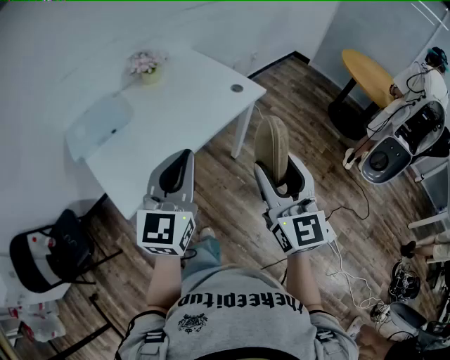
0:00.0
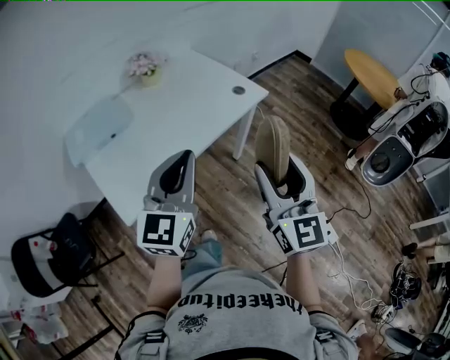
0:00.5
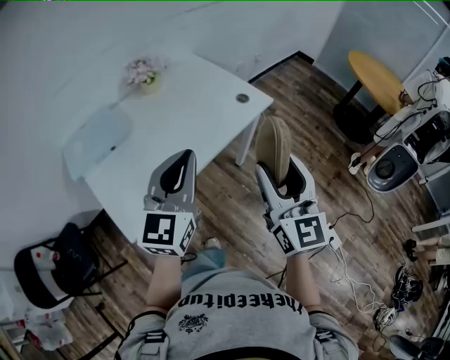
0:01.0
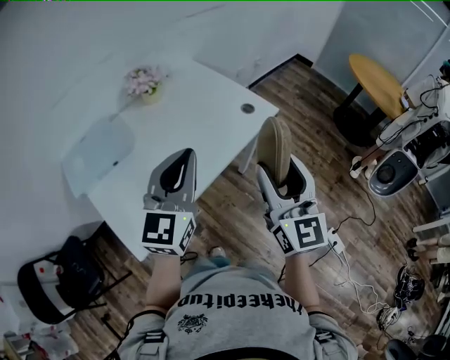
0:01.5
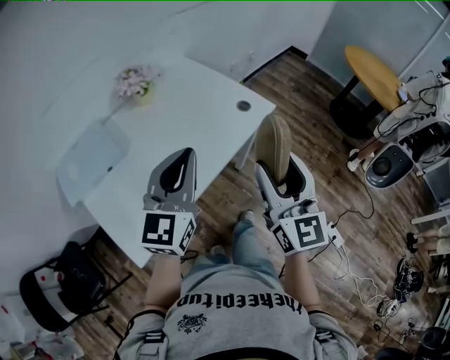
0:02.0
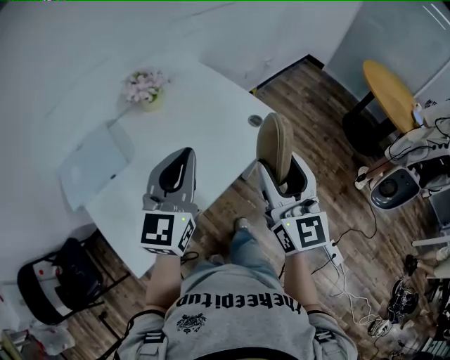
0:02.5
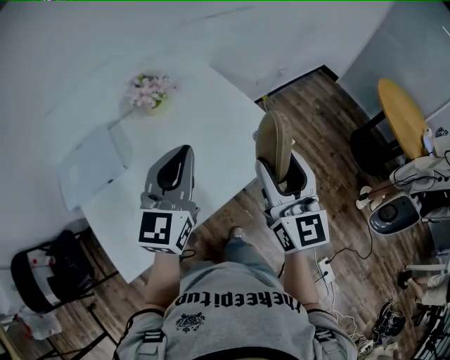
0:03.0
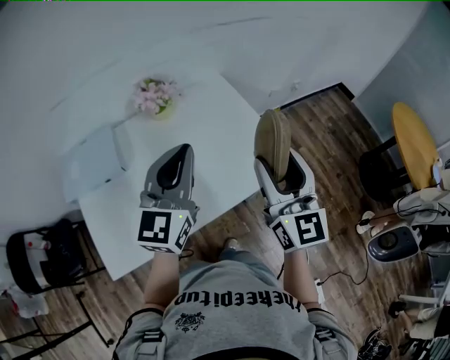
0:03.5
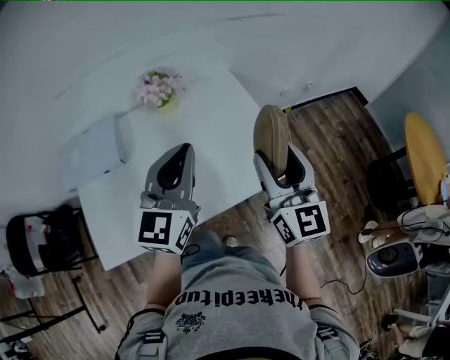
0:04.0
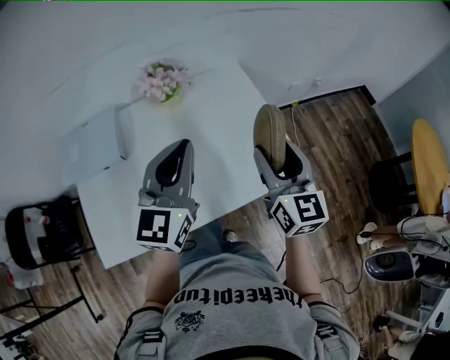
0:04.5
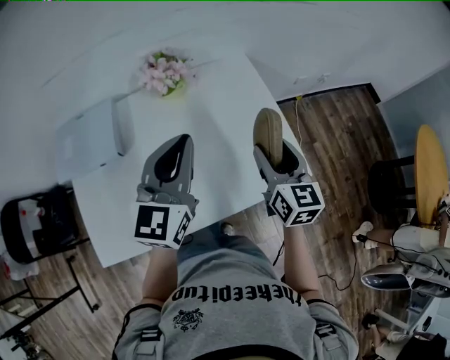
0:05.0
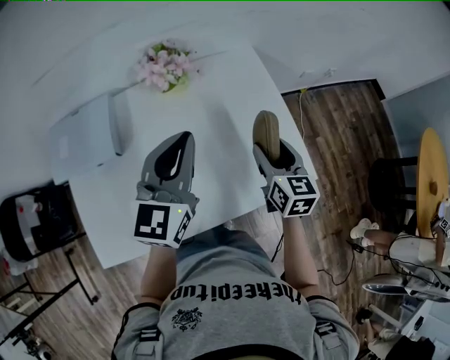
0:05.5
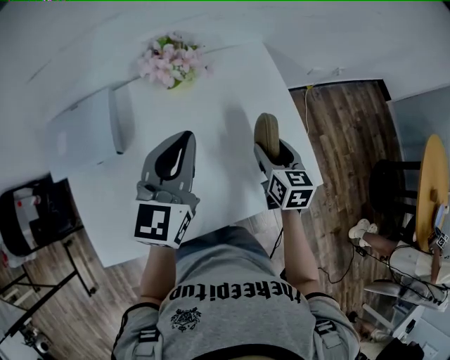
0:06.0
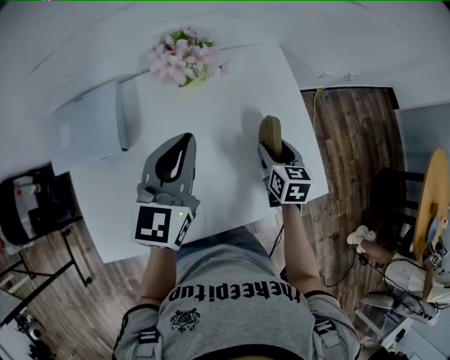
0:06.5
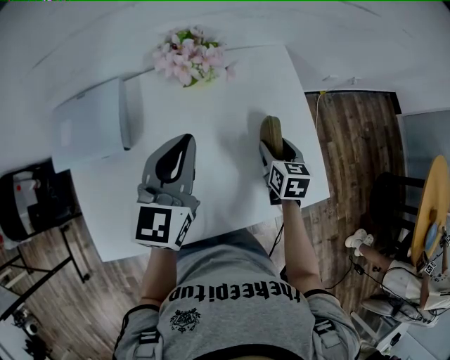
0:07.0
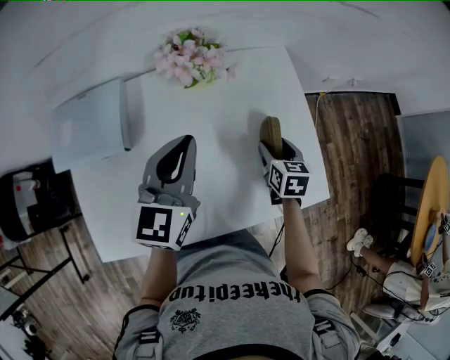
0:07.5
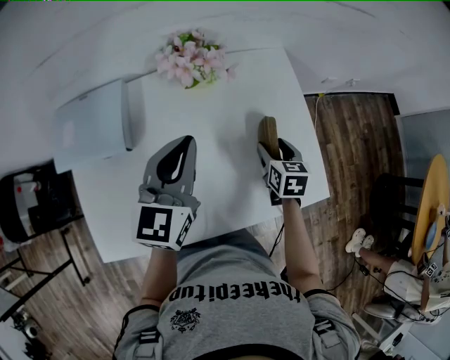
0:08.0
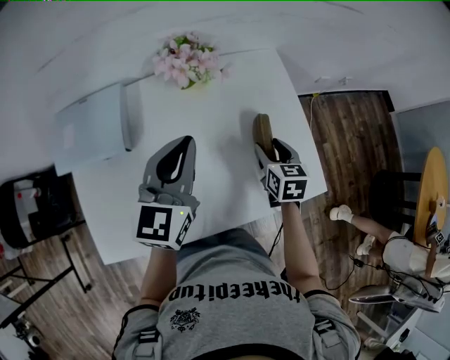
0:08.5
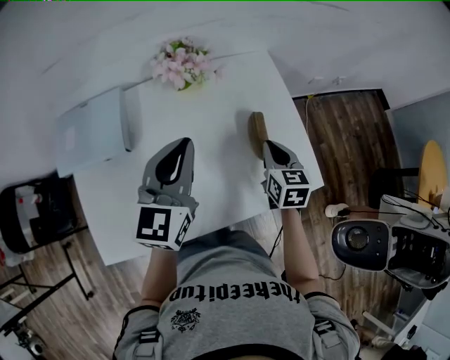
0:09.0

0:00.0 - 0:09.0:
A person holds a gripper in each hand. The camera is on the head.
0:00.0 - 0:02.0: Both grippers travel together forward, about 15 cm.
0:02.0 - 0:04.5: The right gripper shifts by approximately 30 cm, and swivels about 30 degrees; the left gripper changes place by approximately 20 cm, and rotates about 30 degrees.
0:04.5 - 0:07.0: The left gripper travels forward, downward and to the left by approximately 15 cm; the right gripper heads downward and forward, covering roughly 30 cm, and points its fingers roughly 40 degrees further downward.
0:07.0 - 0:09.0: The right gripper travels upward by about 5 cm, and closes up.

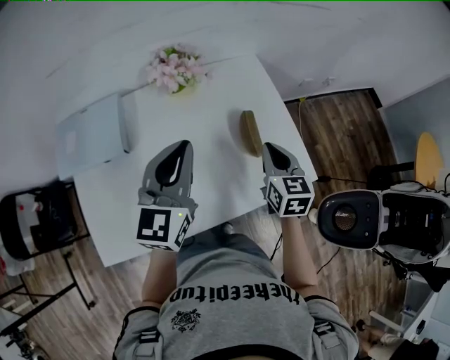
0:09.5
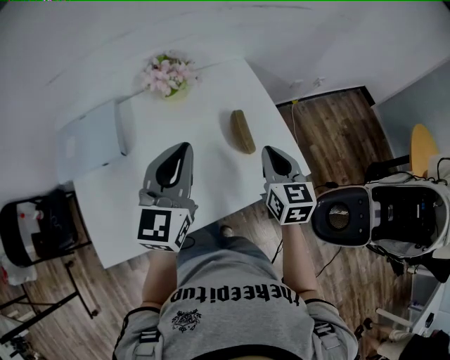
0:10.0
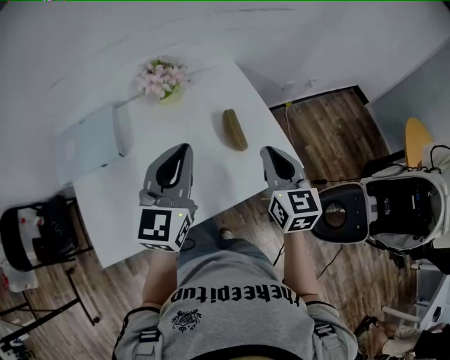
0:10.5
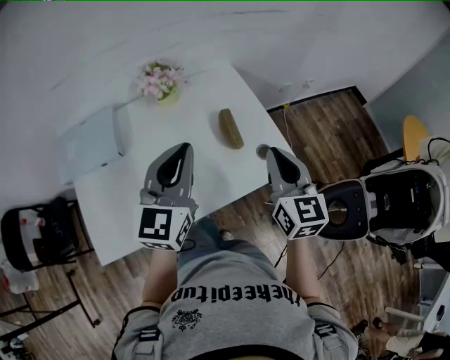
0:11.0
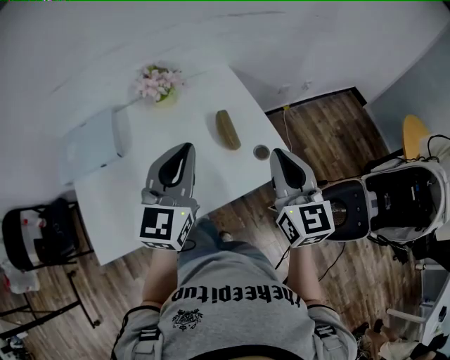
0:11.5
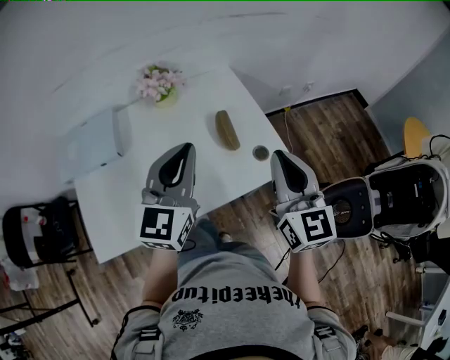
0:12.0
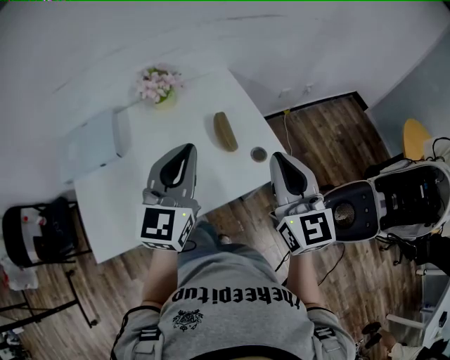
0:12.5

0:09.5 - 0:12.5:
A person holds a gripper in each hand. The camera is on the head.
0:09.5 - 0:11.0: The right gripper travels upward and backward by about 15 cm, while the left gripper moves backward and to the right, some 10 cm.
0:11.0 - 0:12.5: The right gripper moves about 5 cm.

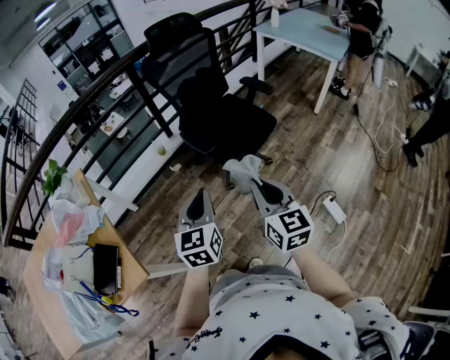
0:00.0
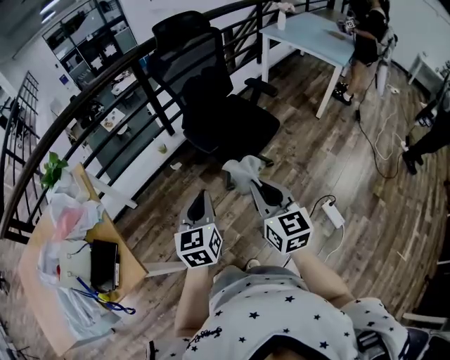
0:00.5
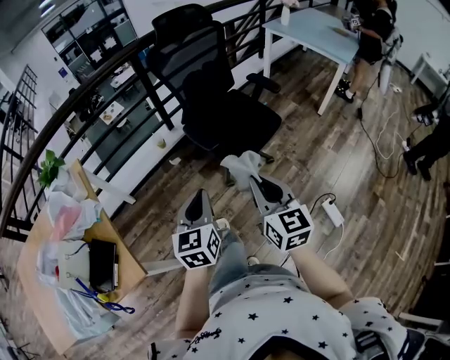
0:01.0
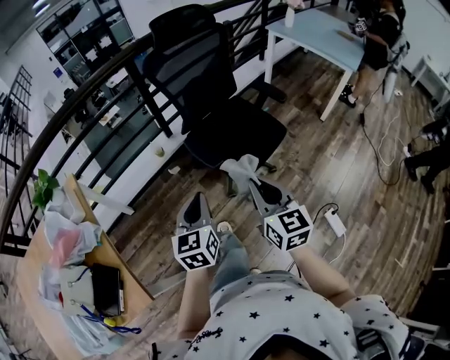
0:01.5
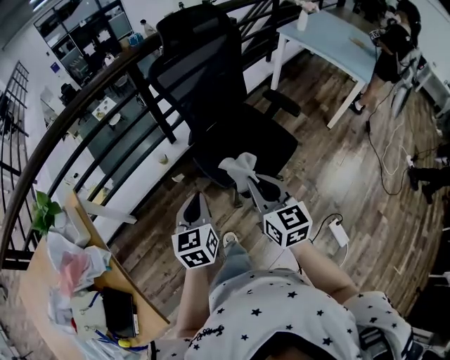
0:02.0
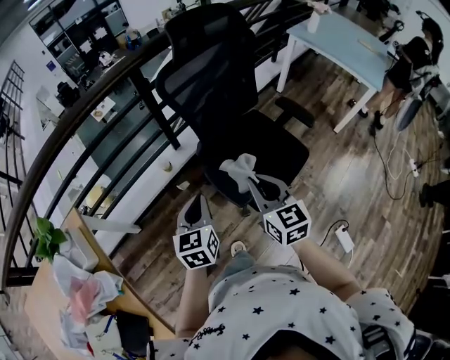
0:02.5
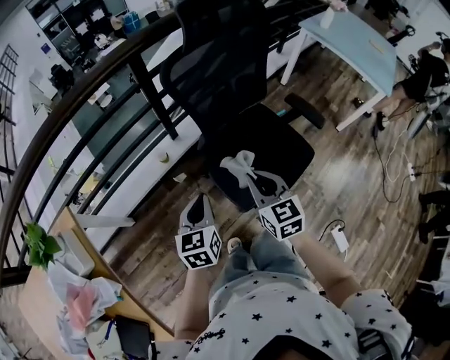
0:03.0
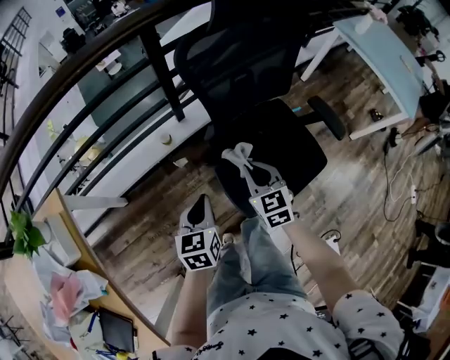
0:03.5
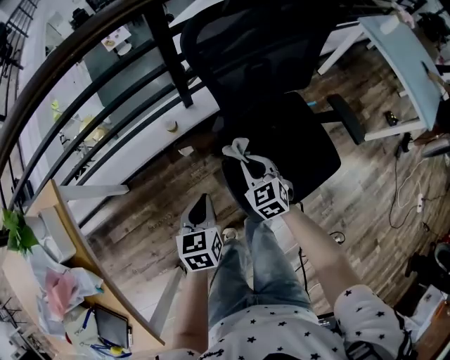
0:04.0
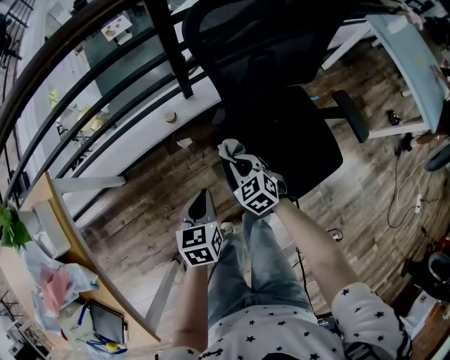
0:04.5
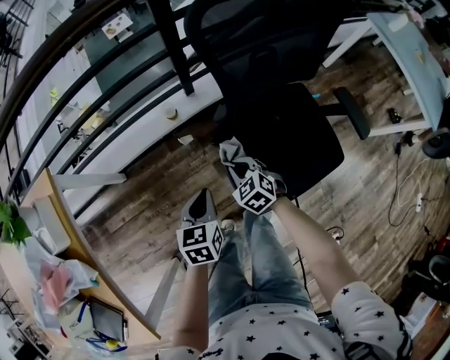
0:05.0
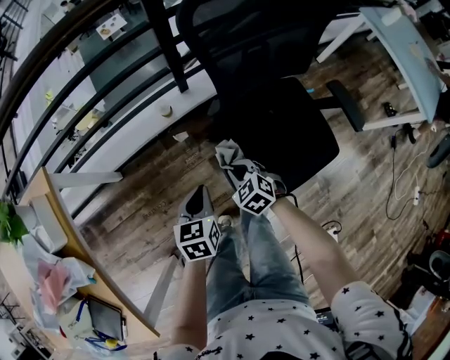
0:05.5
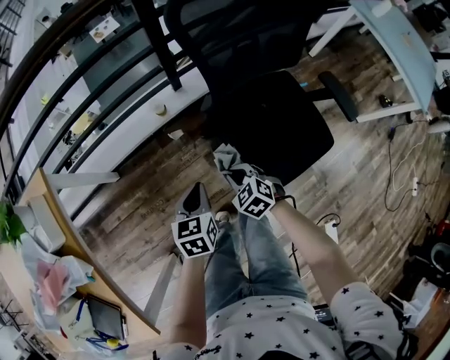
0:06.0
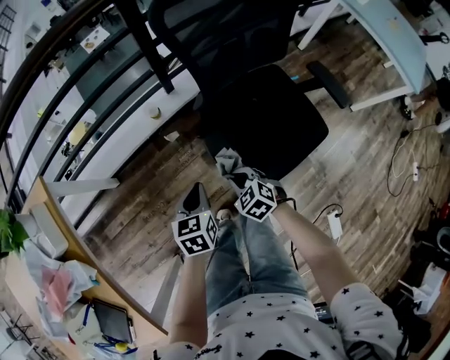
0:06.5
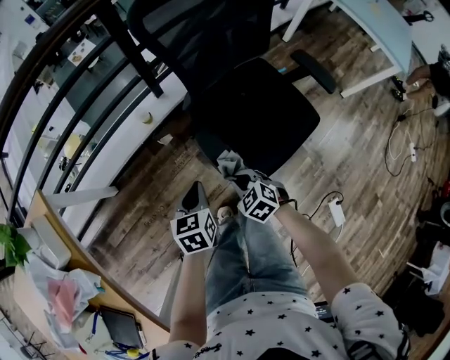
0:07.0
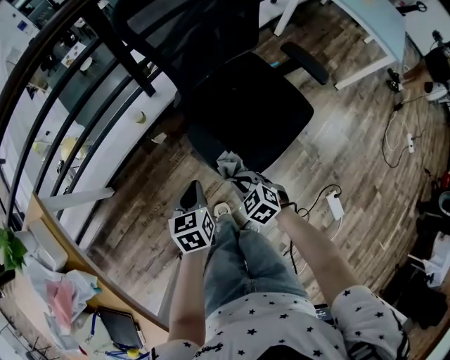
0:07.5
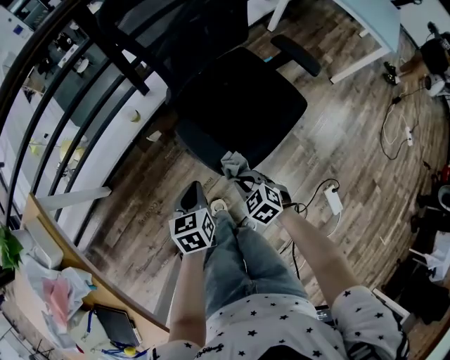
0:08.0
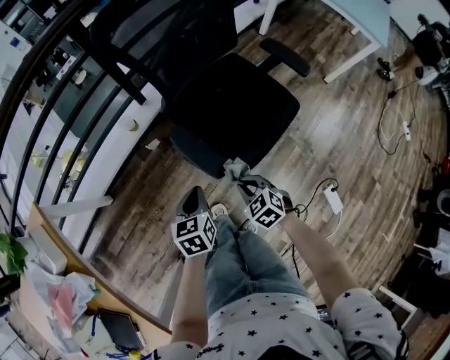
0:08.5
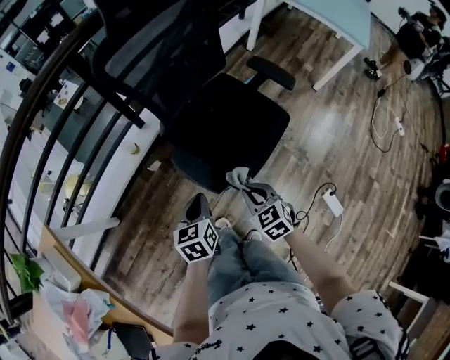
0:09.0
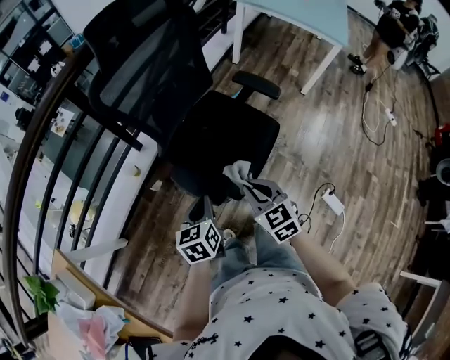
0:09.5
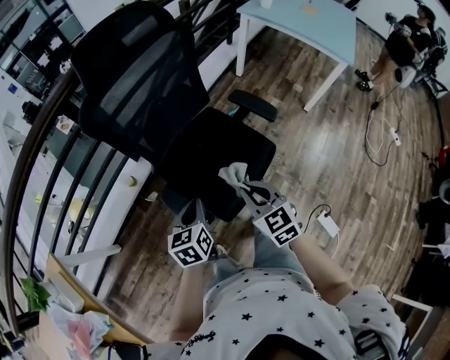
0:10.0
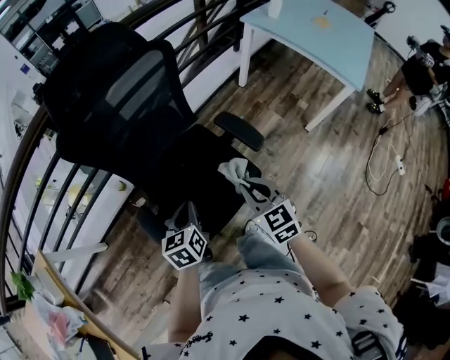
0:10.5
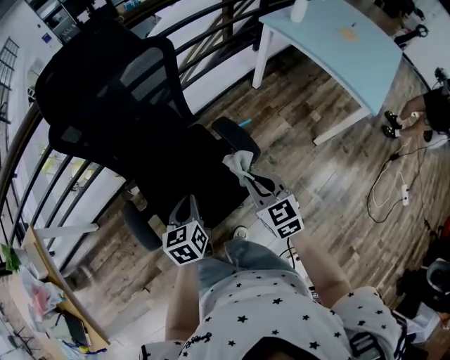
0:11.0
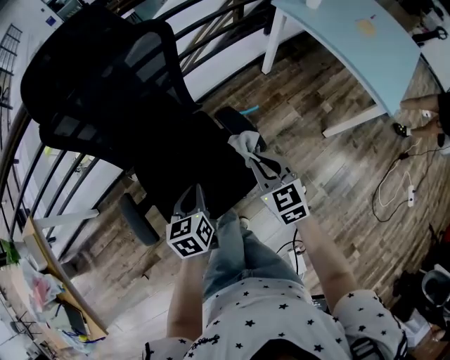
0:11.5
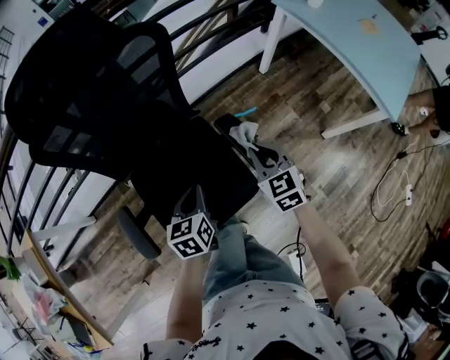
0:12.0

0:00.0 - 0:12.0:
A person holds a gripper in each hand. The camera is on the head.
0:00.0 - 0:02.0: The two grippers go some 25 cm forward.
0:02.0 - 0:04.0: The right gripper moves forward and downward, about 40 cm, and rotates some 40 degrees. Meanwhile the left gripper shifts some 25 cm downward and forward, and changes its angle by about 20 degrees.
0:04.0 - 0:06.0: The right gripper heads backward, downward and to the left, covering approximately 15 cm, and rotates some 20 degrees.
0:06.0 - 0:08.0: The right gripper is displaced backward and to the right by roughly 15 cm, while the left gripper is displaced backward by some 5 cm.
0:08.0 - 0:10.0: The left gripper shifts approximately 20 cm to the right, upward and forward. The right gripper shifts about 30 cm upward, to the right and forward, and swivels approximately 40 degrees.
0:10.0 - 0:12.0: Both grippers travel together to the right and forward, about 30 cm.

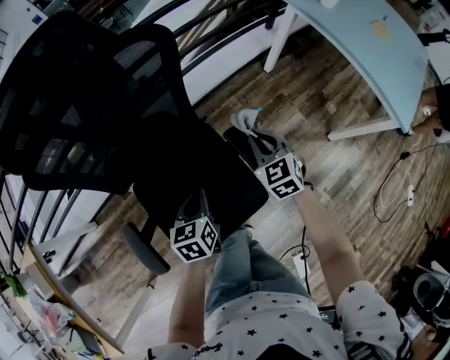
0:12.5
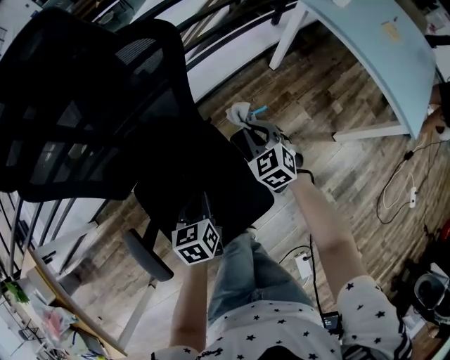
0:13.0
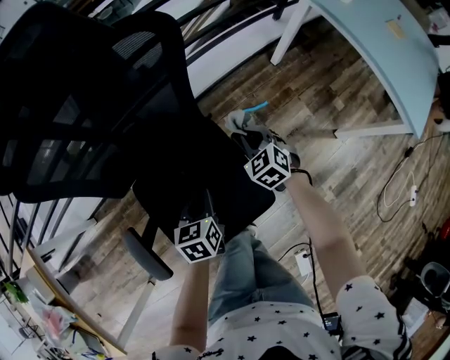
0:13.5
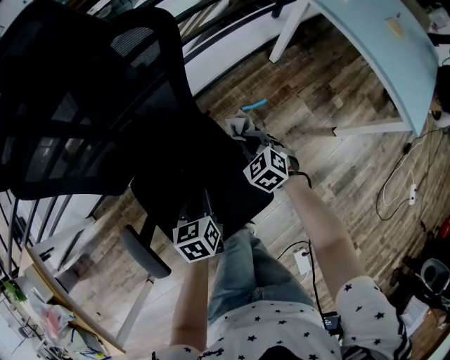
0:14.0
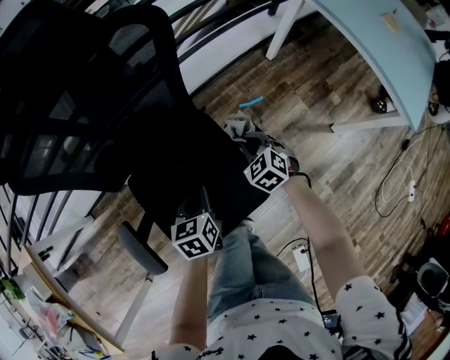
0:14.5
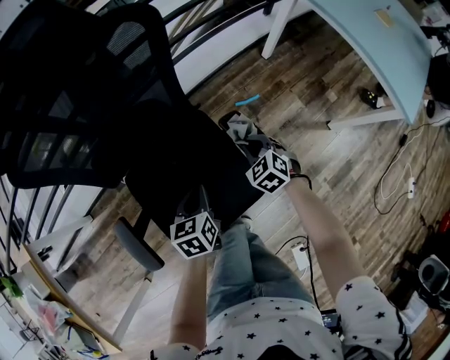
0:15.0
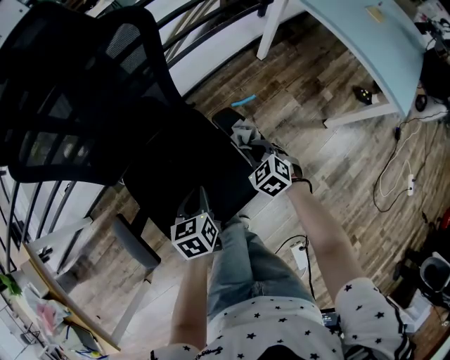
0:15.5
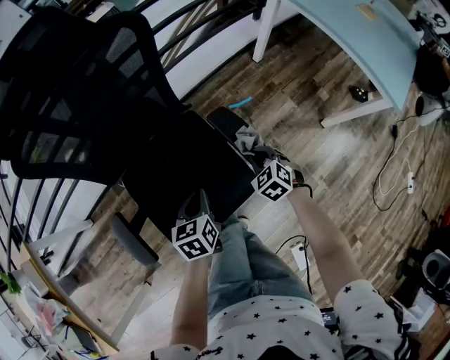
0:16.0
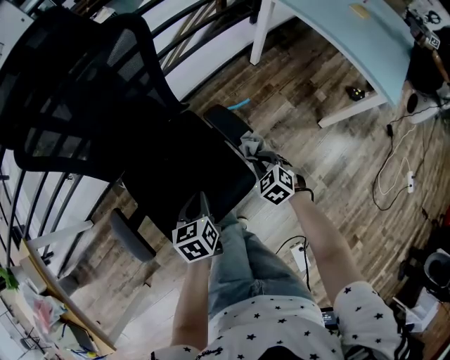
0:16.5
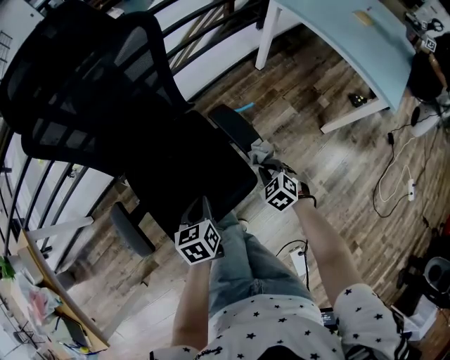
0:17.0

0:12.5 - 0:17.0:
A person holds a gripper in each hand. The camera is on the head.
0:12.5 - 0:14.5: The right gripper moves downward, some 10 cm, and changes its angle by about 20 degrees.
0:14.5 - 0:17.0: The right gripper travels backward and to the right by about 20 cm. The left gripper travels backward by roughly 10 cm.
